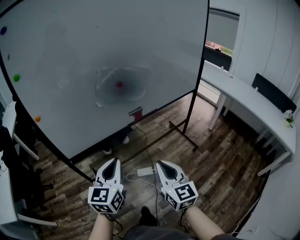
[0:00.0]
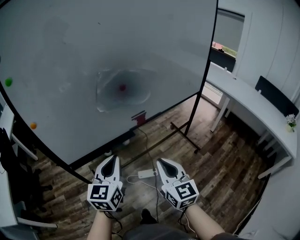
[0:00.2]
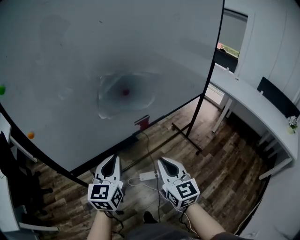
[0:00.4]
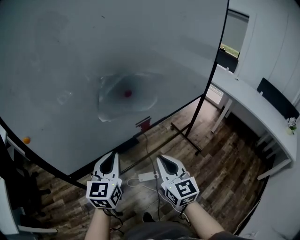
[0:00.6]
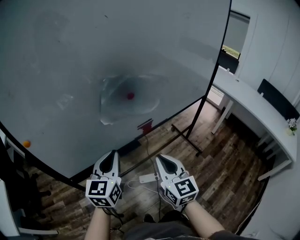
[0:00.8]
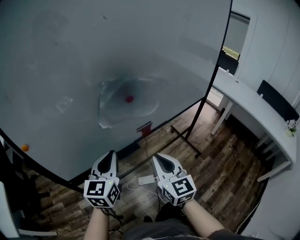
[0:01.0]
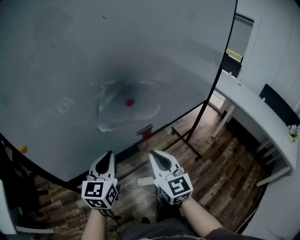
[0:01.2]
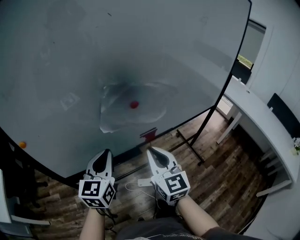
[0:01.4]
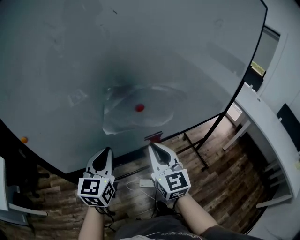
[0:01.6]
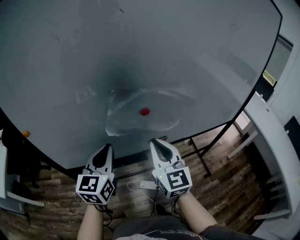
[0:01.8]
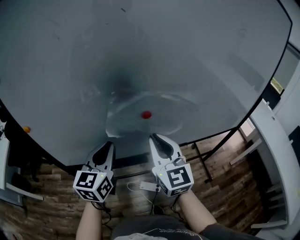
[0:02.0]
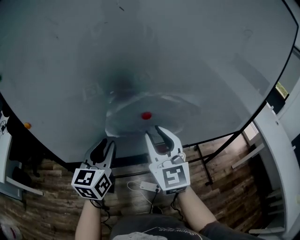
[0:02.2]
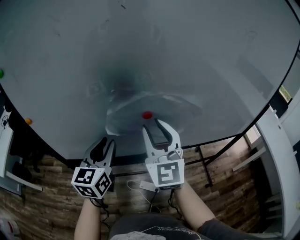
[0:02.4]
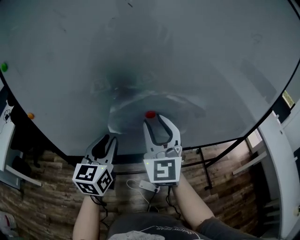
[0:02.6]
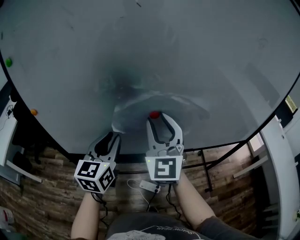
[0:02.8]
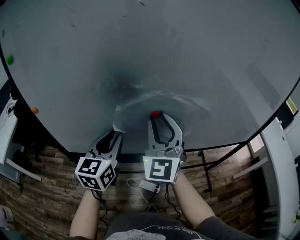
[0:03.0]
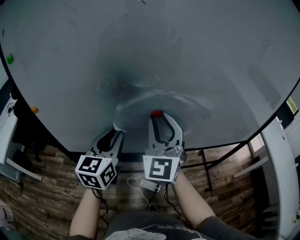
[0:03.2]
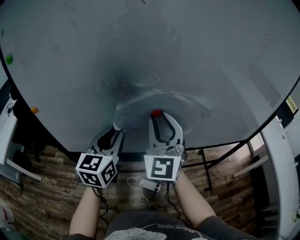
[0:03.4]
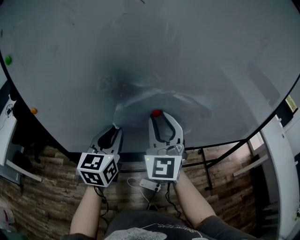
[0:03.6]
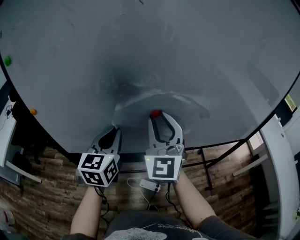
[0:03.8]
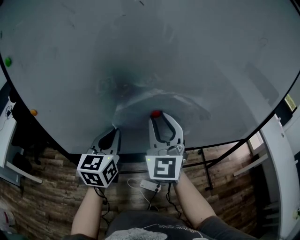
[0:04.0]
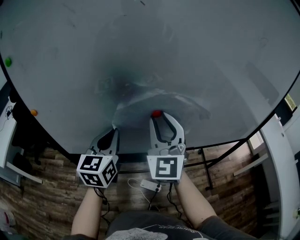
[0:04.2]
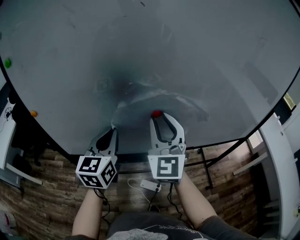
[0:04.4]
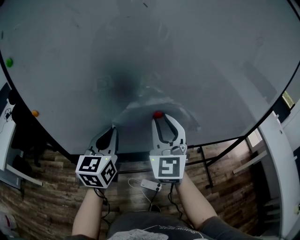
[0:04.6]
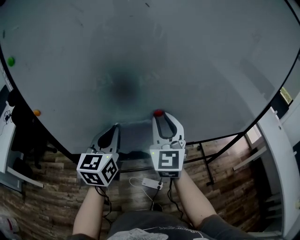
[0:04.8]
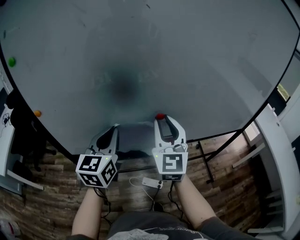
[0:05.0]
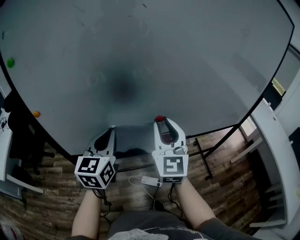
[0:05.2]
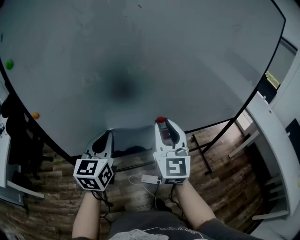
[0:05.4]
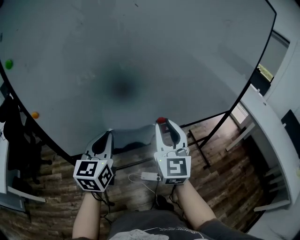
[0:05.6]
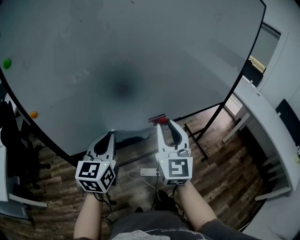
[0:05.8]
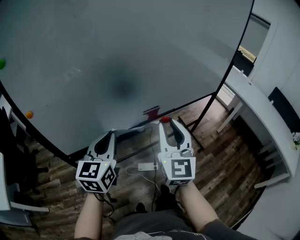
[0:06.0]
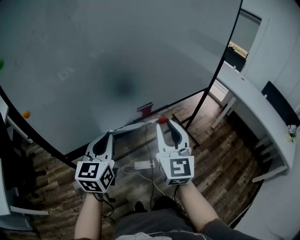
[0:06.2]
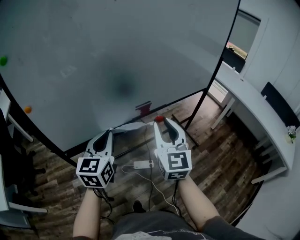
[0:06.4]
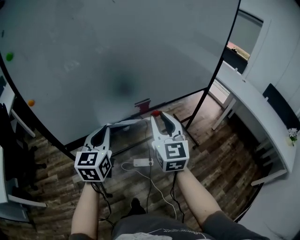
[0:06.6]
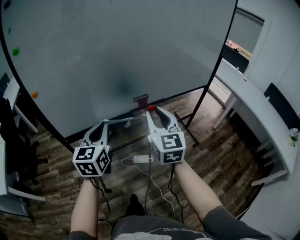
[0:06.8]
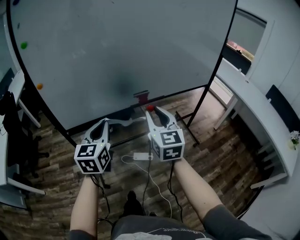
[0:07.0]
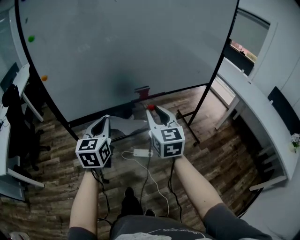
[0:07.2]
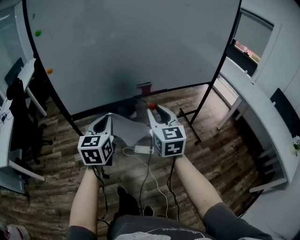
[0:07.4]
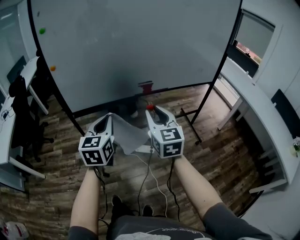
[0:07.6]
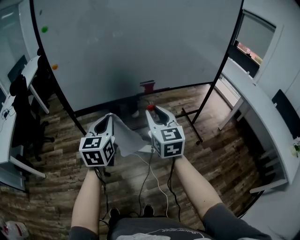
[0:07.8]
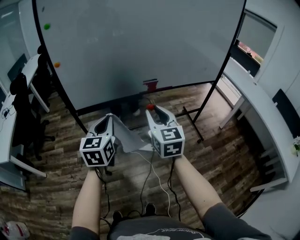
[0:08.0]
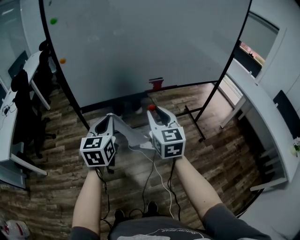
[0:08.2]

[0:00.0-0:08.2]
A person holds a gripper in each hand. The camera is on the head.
0:00.0 to 0:01.6: The grippers both shift forward by approximately 25 cm.
0:01.6 to 0:03.2: The left gripper opens; the right gripper moves forward and upward, roughly 15 cm, turns by approximately 30 degrees, and opens up.
0:03.2 to 0:05.0: The left gripper closes.
0:05.0 to 0:06.6: The left gripper travels backward by roughly 15 cm; the right gripper moves backward and to the right, roughly 20 cm.
0:06.6 to 0:08.2: The left gripper heads backward, covering approximately 15 cm. The right gripper heads backward and to the left, covering roughly 15 cm.

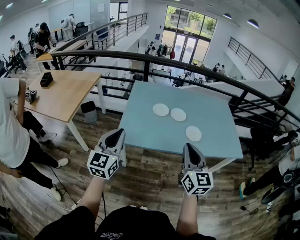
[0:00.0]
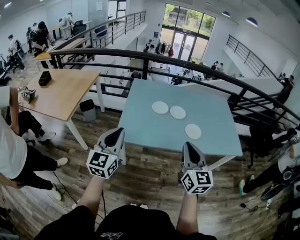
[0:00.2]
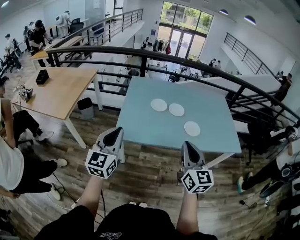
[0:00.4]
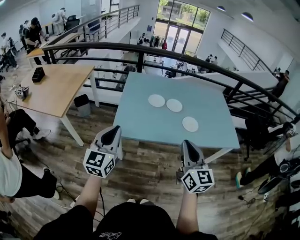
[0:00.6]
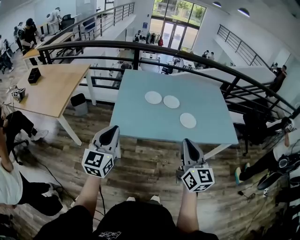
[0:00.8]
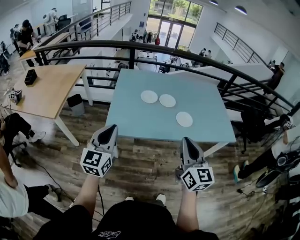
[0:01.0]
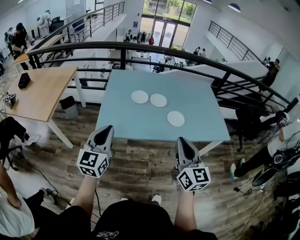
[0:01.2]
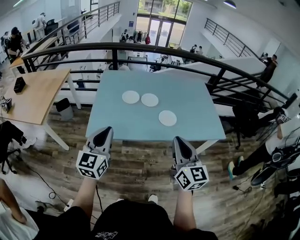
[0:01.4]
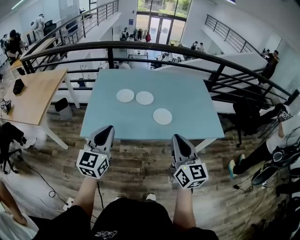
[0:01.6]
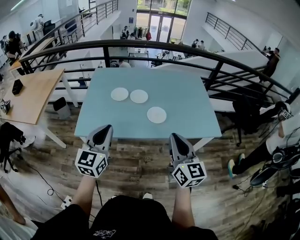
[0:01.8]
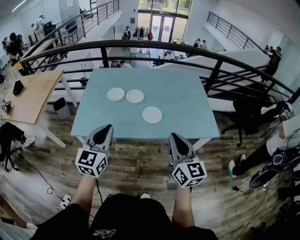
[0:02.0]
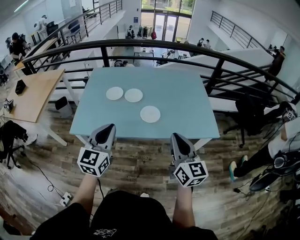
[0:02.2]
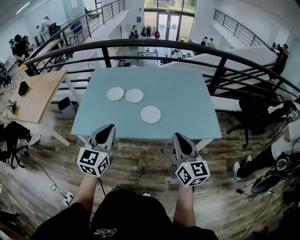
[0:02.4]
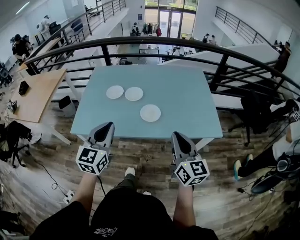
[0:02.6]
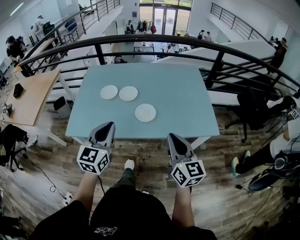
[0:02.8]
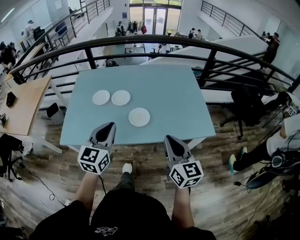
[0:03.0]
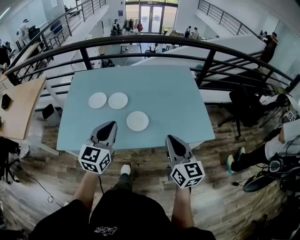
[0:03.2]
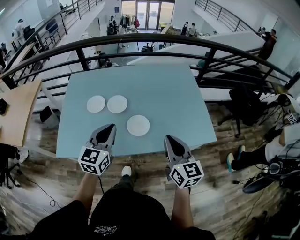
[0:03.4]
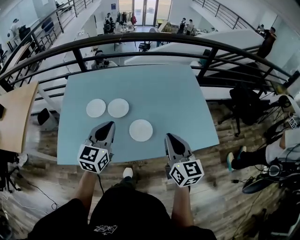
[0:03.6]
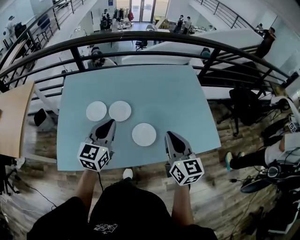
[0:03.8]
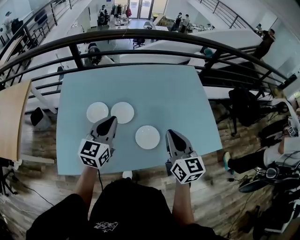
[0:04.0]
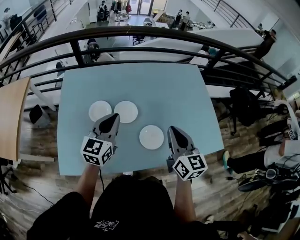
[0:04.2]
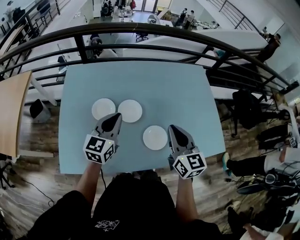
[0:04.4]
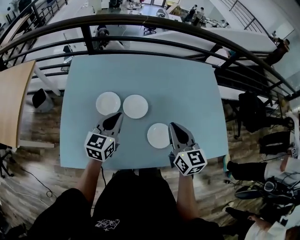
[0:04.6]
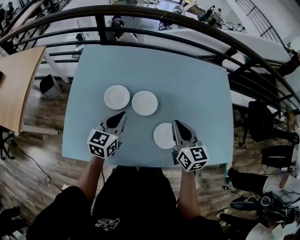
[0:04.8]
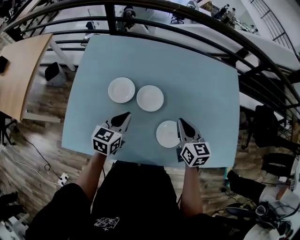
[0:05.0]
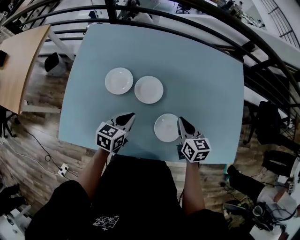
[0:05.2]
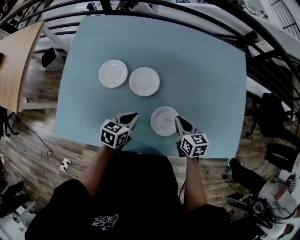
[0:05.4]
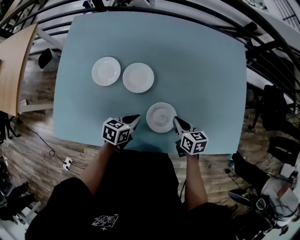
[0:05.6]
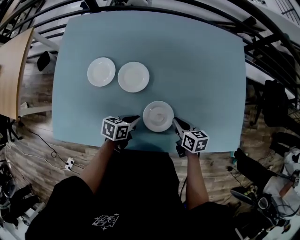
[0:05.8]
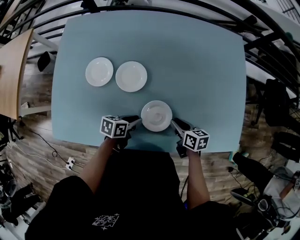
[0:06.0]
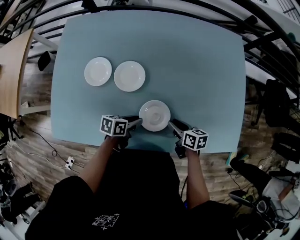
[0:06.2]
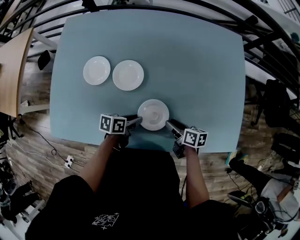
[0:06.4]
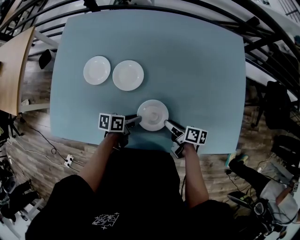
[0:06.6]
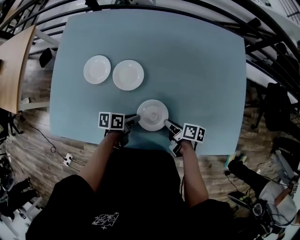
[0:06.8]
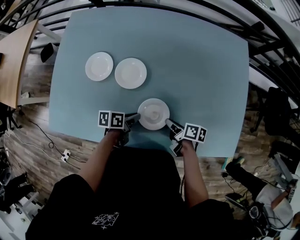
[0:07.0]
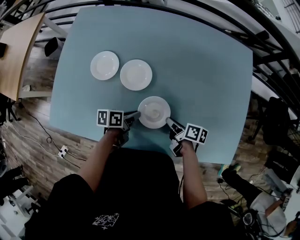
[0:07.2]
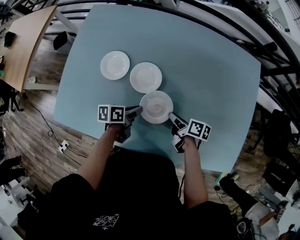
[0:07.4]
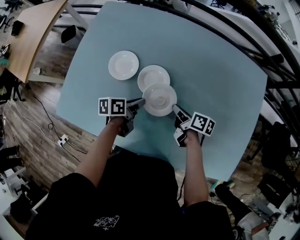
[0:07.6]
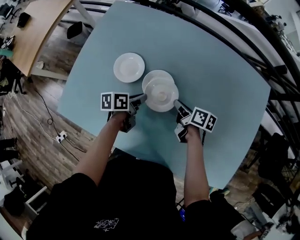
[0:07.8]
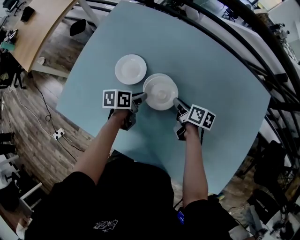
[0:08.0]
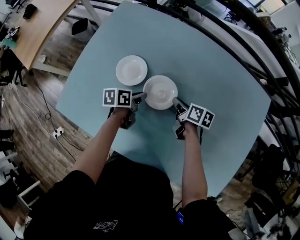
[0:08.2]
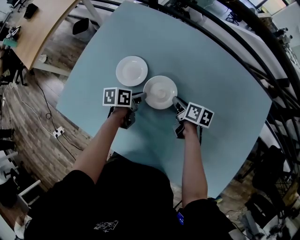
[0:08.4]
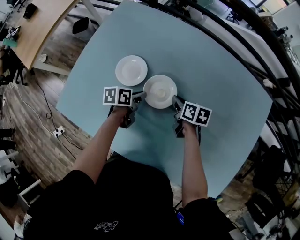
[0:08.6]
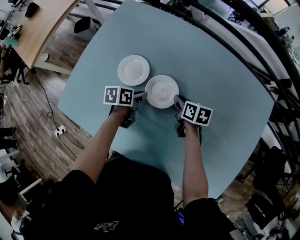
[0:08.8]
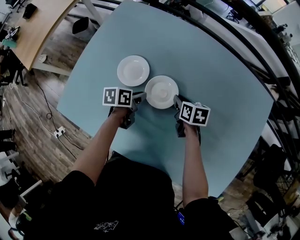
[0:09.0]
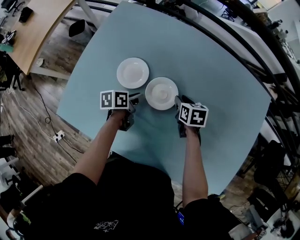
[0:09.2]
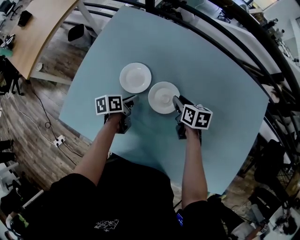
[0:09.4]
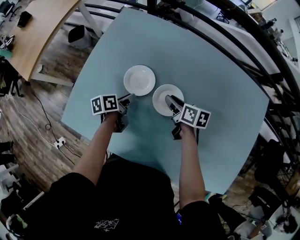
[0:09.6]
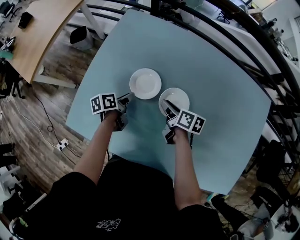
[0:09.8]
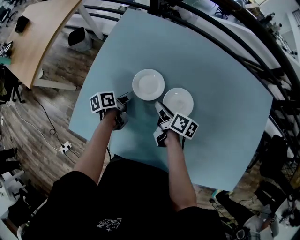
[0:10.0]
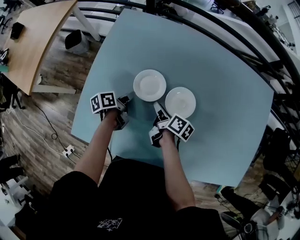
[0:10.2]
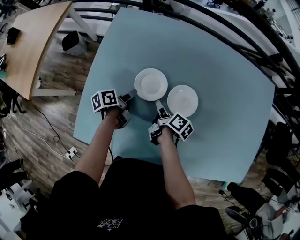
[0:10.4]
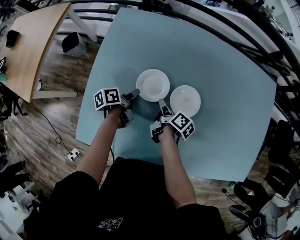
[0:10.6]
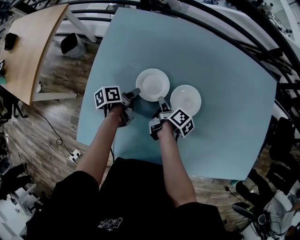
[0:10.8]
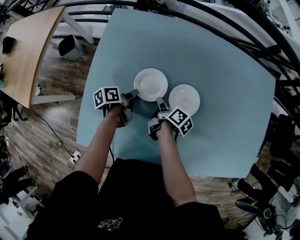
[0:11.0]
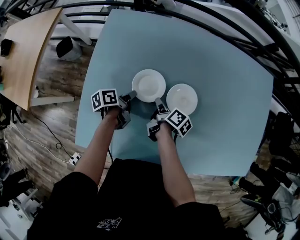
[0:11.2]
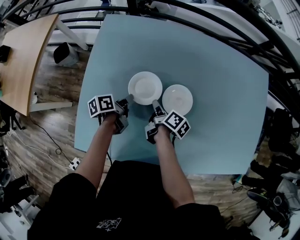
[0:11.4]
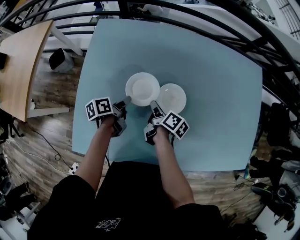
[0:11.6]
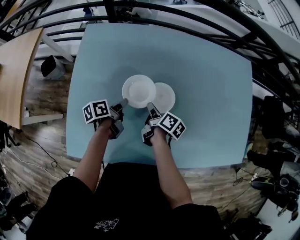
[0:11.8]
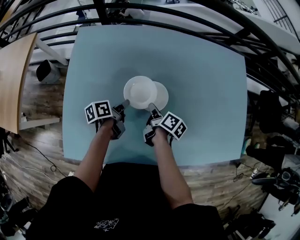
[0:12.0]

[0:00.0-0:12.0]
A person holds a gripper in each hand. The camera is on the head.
0:00.0 to 0:01.6: Both grippers move to the right, roughly 20 cm.
0:01.6 to 0:03.0: The two grippers go roughly 25 cm to the right and forward.
0:03.0 to 0:04.4: Both grippers travel together forward and to the left, some 35 cm.
0:04.4 to 0:06.0: The left gripper goes roughly 30 cm downward and to the right, and swivels approximately 60 degrees. Meanwhile the right gripper goes approximately 30 cm downward, and changes its angle by approximately 50 degrees.
0:06.0 to 0:07.6: The two grippers go approximately 15 cm forward and to the left. The left gripper swivels roughly 30 degrees. The right gripper turns by about 20 degrees, and opens and closes again.
0:07.6 to 0:09.0: The right gripper travels forward by some 10 cm, and turns by about 40 degrees, while the left gripper travels forward and to the left by roughly 10 cm.
0:09.0 to 0:10.4: Both grippers travel together to the left, about 20 cm. The right gripper twists some 50 degrees clockwise, seen from behind.
0:10.4 to 0:12.0: The two grippers go about 10 cm to the right.

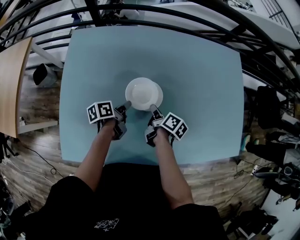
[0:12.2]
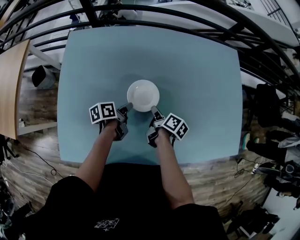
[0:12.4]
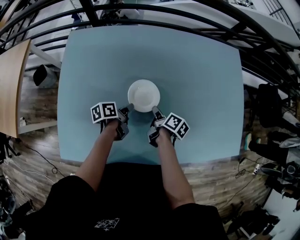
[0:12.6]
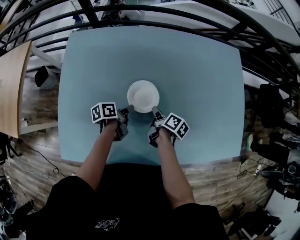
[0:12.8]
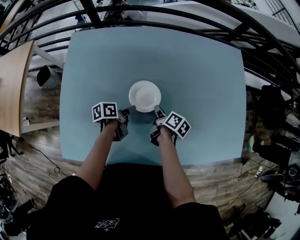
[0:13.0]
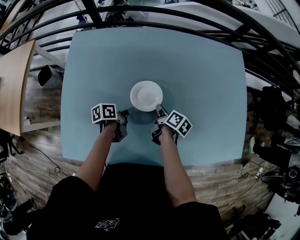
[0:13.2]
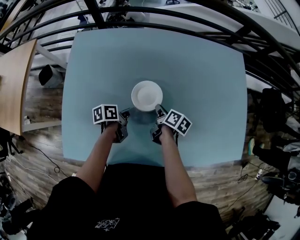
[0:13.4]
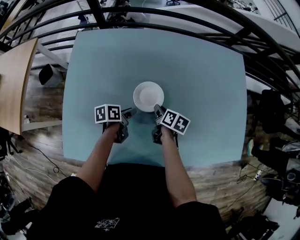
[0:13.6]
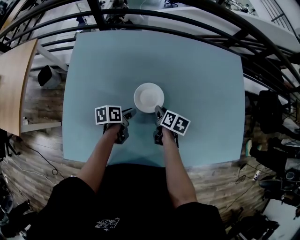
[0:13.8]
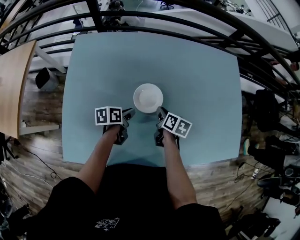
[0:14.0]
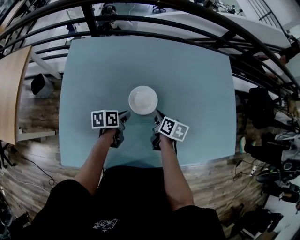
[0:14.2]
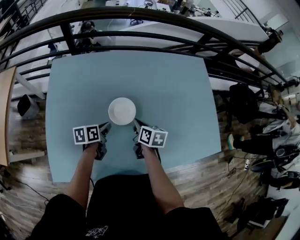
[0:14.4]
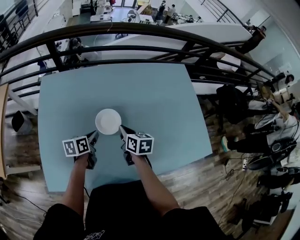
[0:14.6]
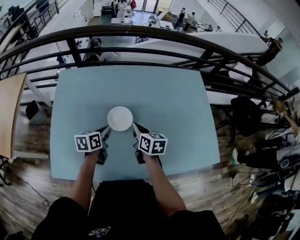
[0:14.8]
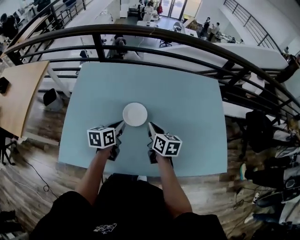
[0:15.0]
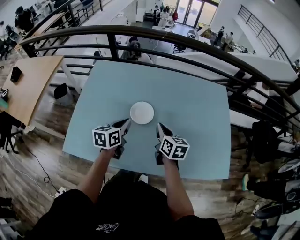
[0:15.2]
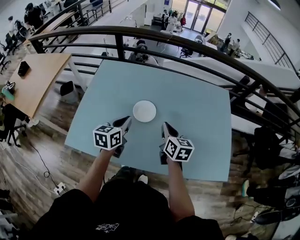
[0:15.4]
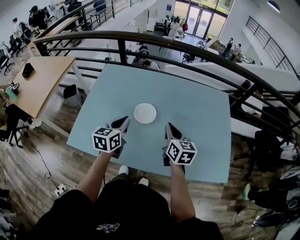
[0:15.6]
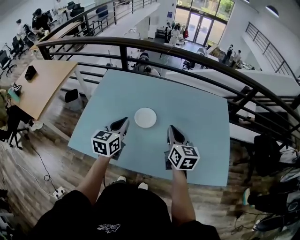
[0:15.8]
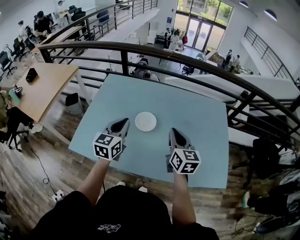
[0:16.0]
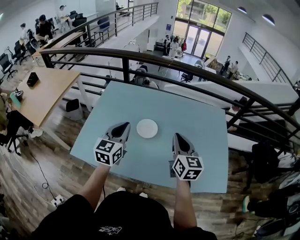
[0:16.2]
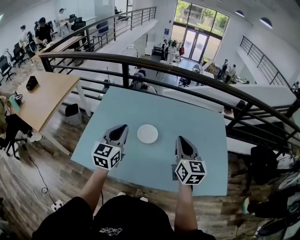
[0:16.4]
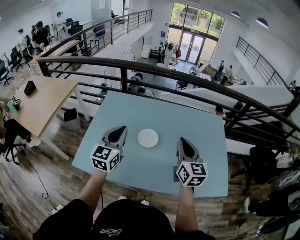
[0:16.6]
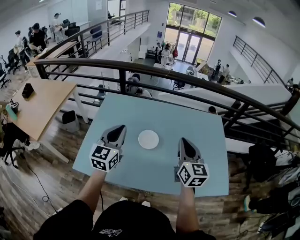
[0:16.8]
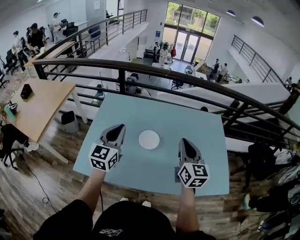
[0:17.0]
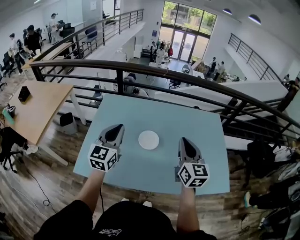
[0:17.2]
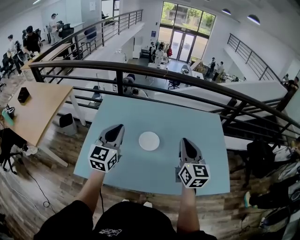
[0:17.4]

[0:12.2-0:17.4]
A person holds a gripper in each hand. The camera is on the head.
0:12.2 to 0:14.0: The right gripper swivels some 30 degrees, and opens, then closes again.
0:14.0 to 0:15.6: The left gripper heads upward and backward, covering roughly 30 cm, and turns by approximately 50 degrees. Meanwhile the right gripper travels upward, backward and to the right by some 30 cm, and turns by about 40 degrees.
0:15.6 to 0:17.4: The right gripper heads upward, covering approximately 15 cm, and swivels roughly 20 degrees; the left gripper goes about 20 cm upward and to the left, and turns by some 30 degrees.
